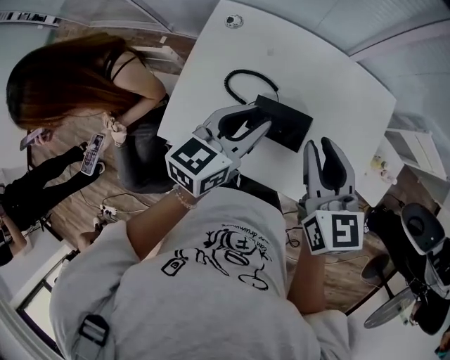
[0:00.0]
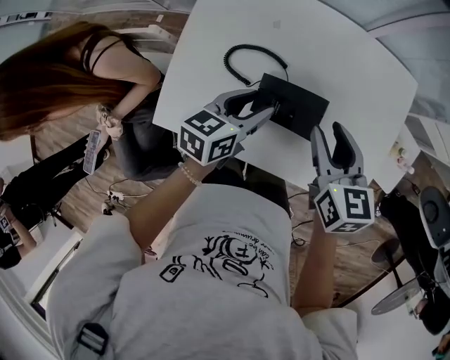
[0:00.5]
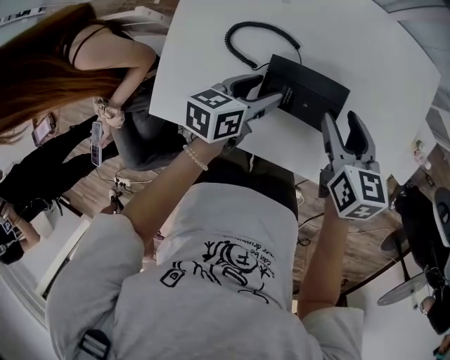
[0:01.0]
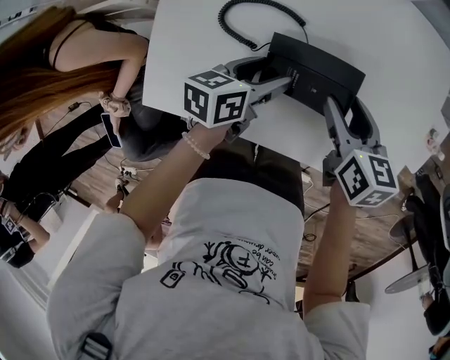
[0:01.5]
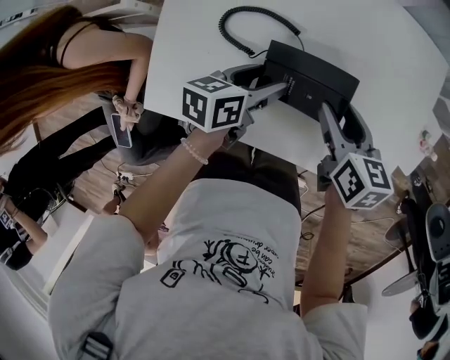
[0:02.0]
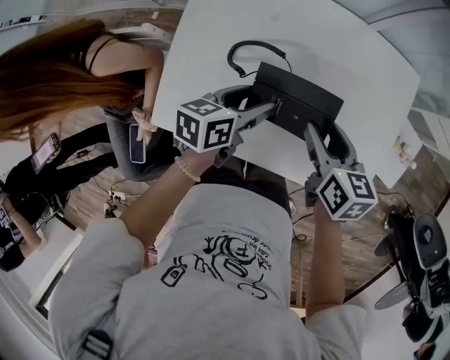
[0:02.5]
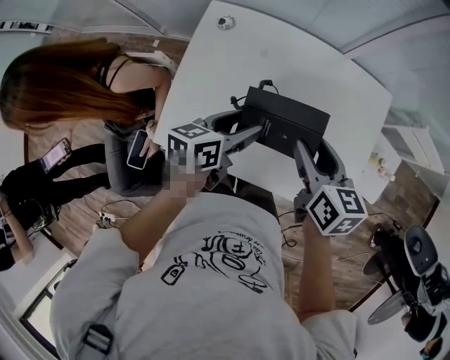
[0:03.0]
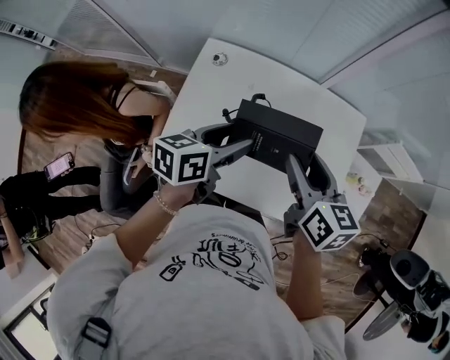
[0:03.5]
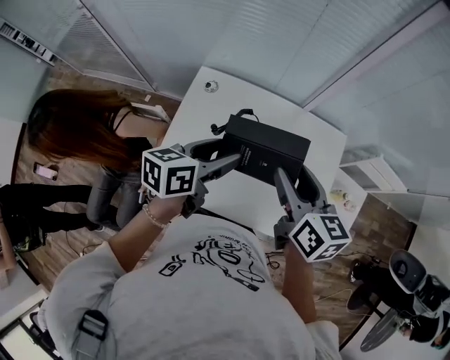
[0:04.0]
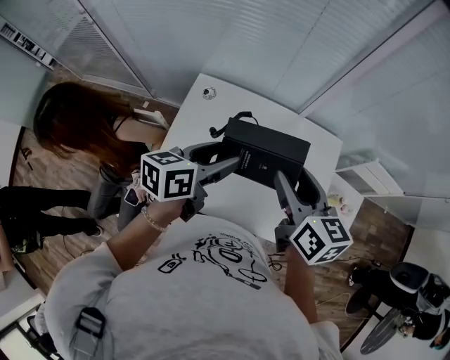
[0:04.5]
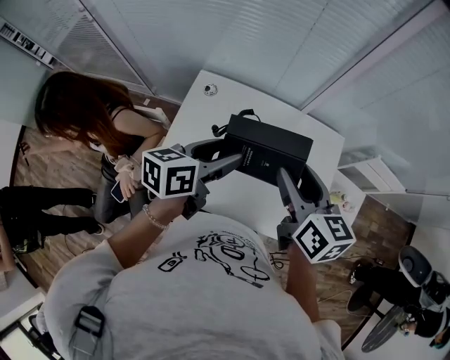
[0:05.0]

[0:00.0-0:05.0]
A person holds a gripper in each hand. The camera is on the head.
0:00.0 to 0:02.5: The grippers both shift downward by roughly 15 cm. The right gripper swivels about 20 degrees, and opens up, while the left gripper turns by approximately 30 degrees, and opens.
0:02.5 to 0:05.0: Both grippers travel together upward, some 25 cm.

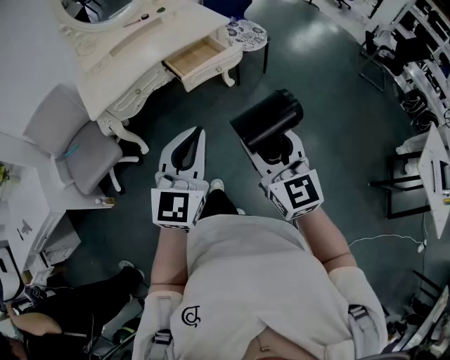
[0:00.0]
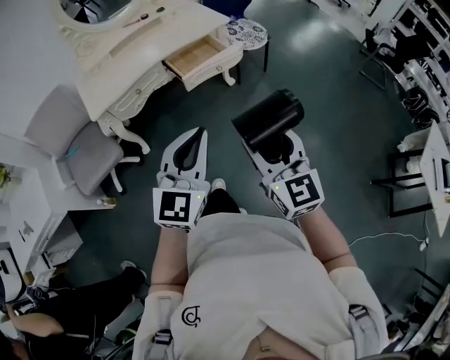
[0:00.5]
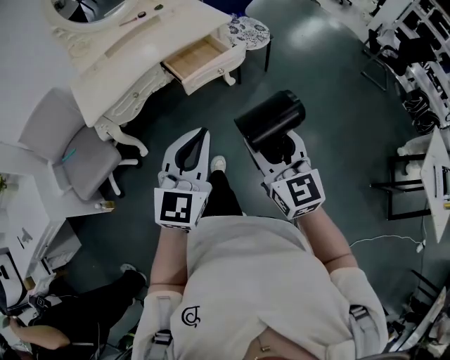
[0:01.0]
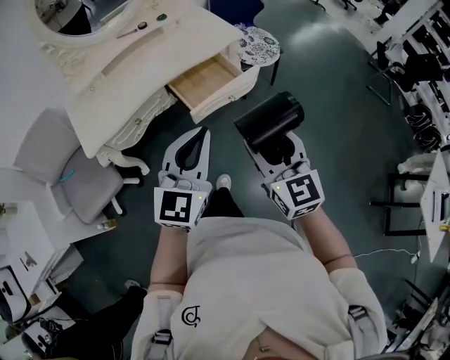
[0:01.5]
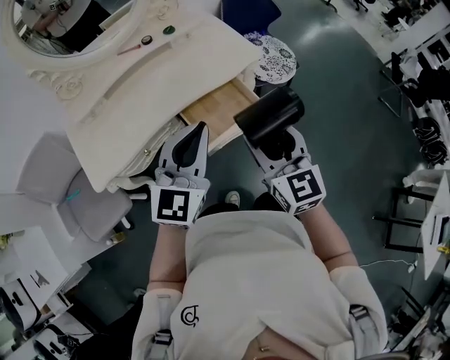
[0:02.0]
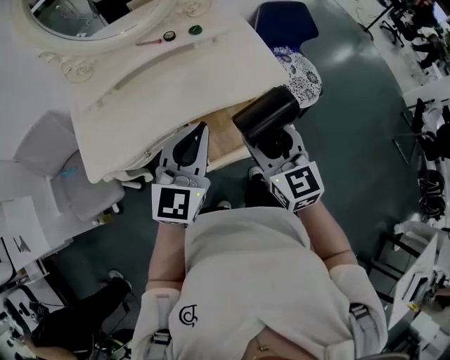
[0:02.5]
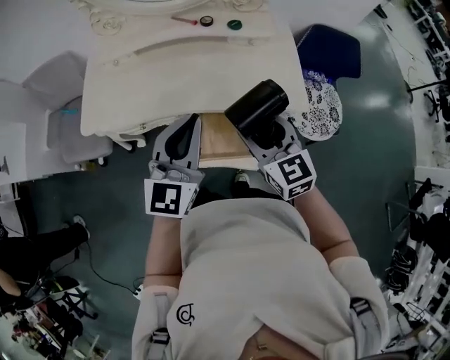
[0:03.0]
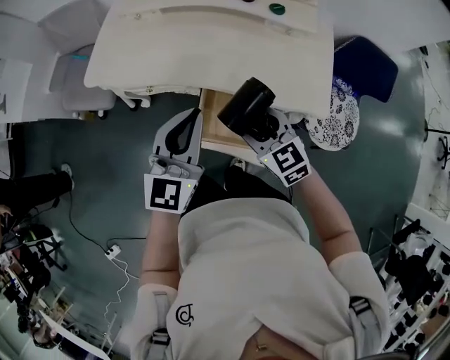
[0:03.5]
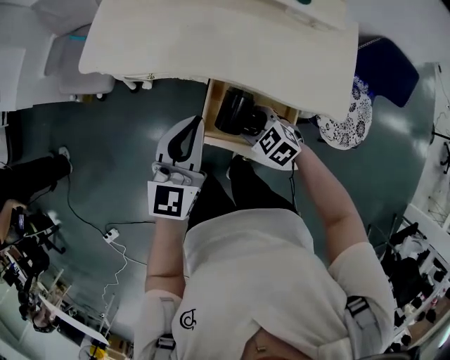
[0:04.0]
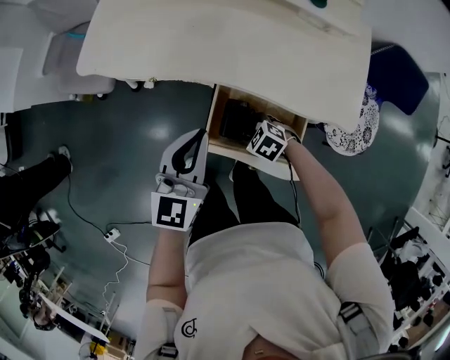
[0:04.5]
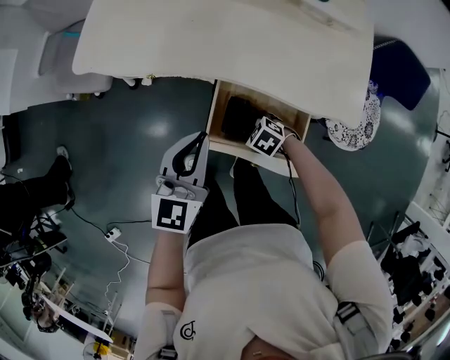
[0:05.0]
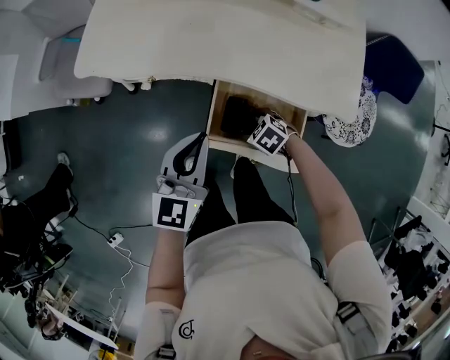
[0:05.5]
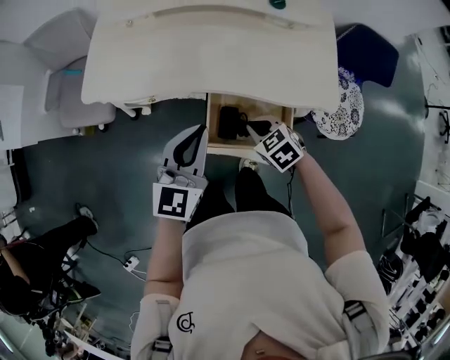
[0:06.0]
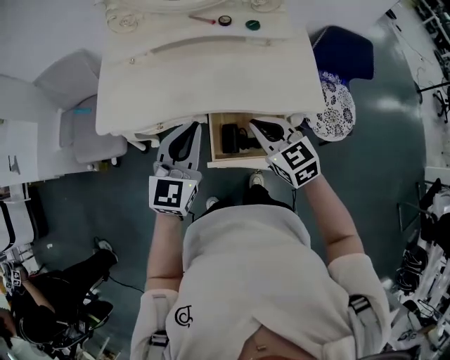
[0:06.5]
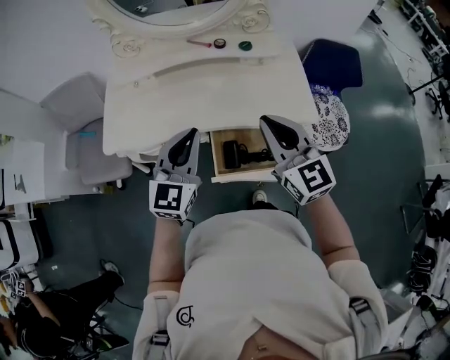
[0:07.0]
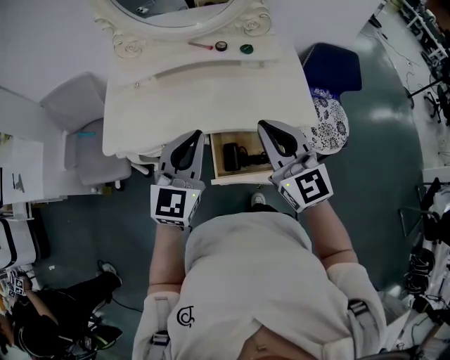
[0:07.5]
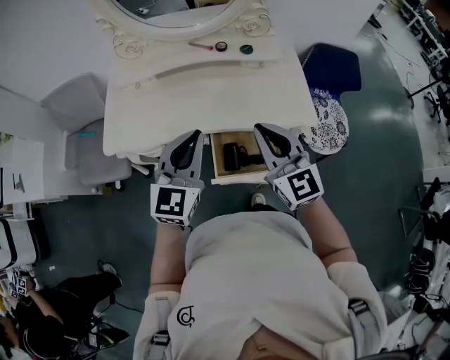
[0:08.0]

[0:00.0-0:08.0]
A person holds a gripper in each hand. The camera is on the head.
0:00.0 to 0:02.0: The two grippers travel together, forward, roughly 40 cm.
0:02.0 to 0:04.0: The right gripper moves downward, about 30 cm, and tips its fingers downward by roughly 40 degrees. The left gripper goes some 15 cm downward, and changes its angle by some 50 degrees.
0:04.0 to 0:06.0: The right gripper moves some 15 cm downward and comes back, turns by some 20 degrees, and closes its fingers.
0:06.0 to 0:08.0: The left gripper heads upward, covering about 10 cm. Meanwhile the right gripper moves upward, approximately 30 cm, and tilts its fingers approximately 50 degrees upward.

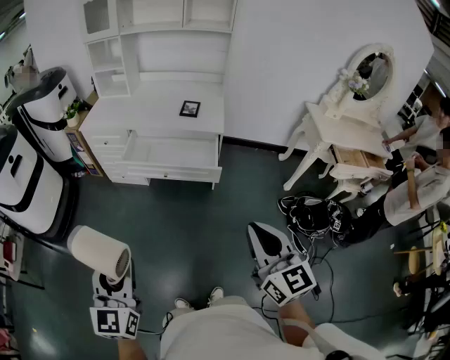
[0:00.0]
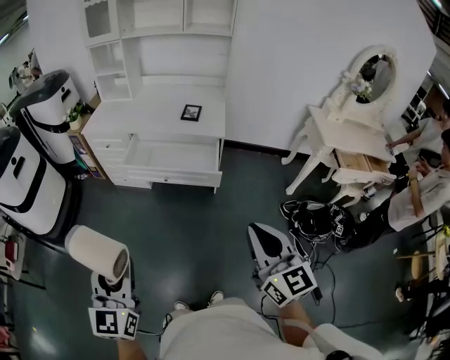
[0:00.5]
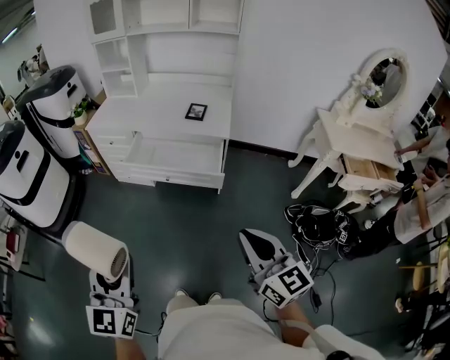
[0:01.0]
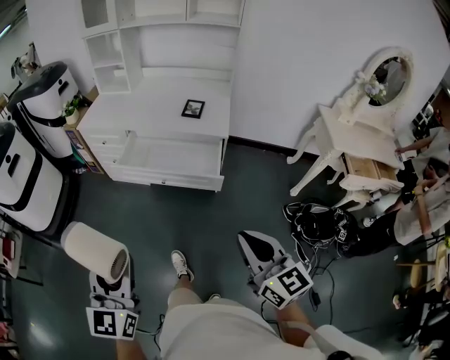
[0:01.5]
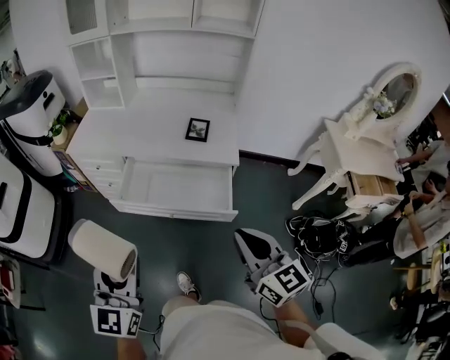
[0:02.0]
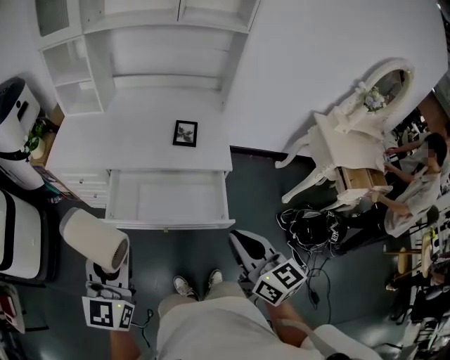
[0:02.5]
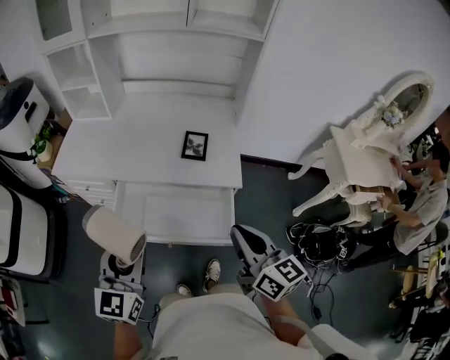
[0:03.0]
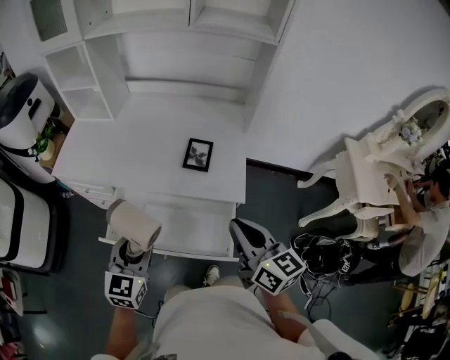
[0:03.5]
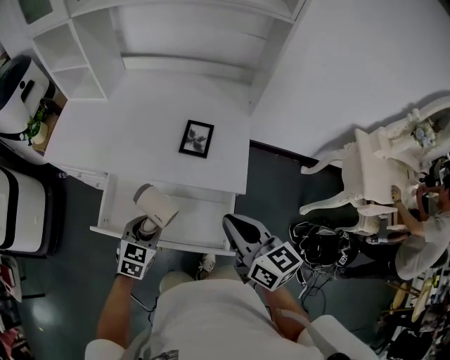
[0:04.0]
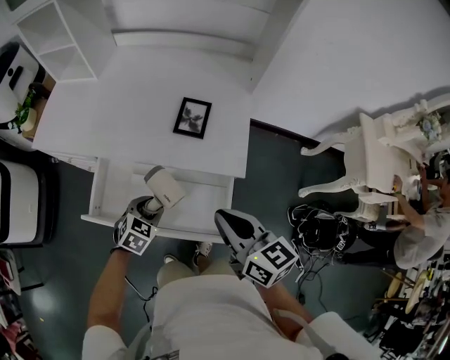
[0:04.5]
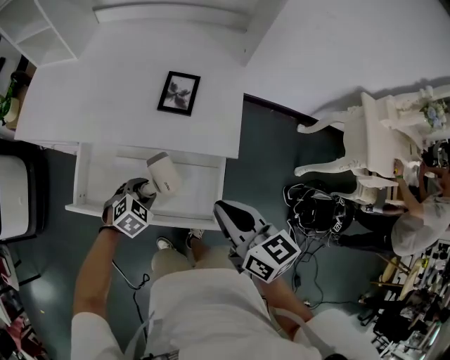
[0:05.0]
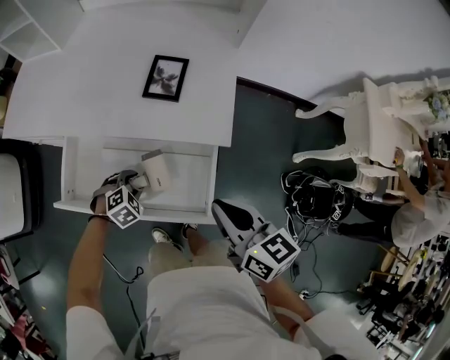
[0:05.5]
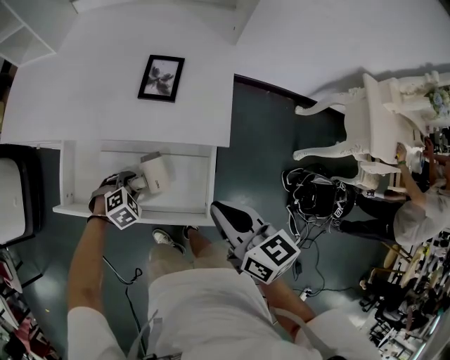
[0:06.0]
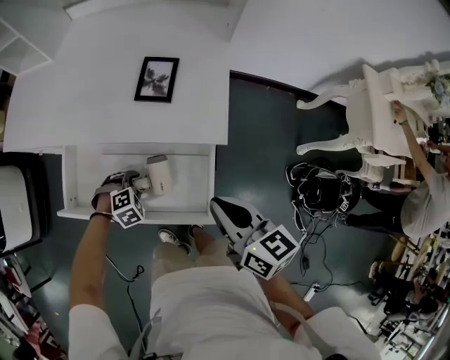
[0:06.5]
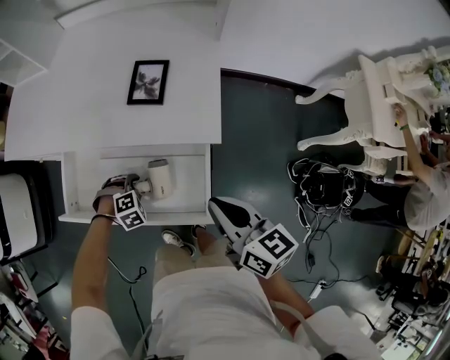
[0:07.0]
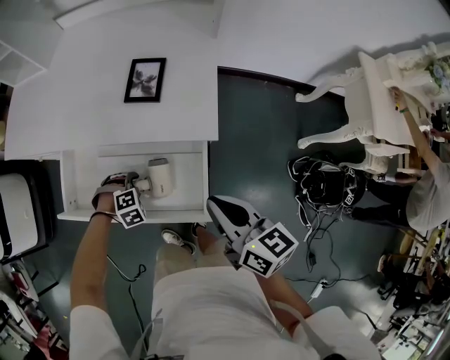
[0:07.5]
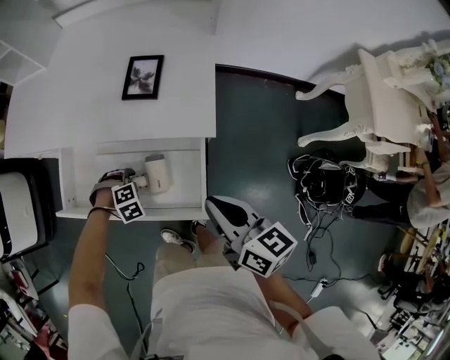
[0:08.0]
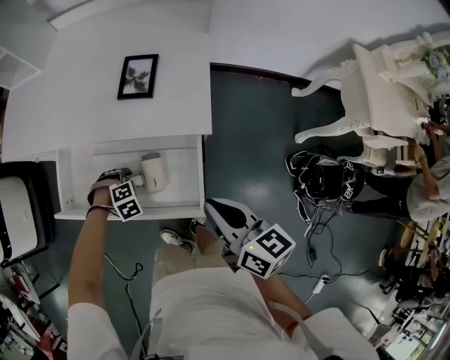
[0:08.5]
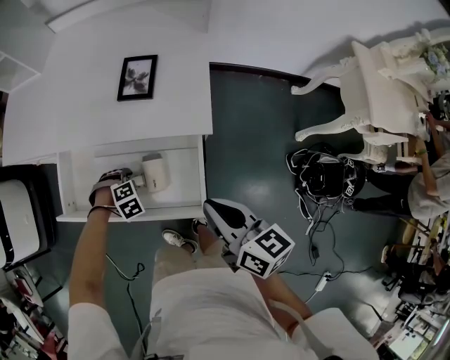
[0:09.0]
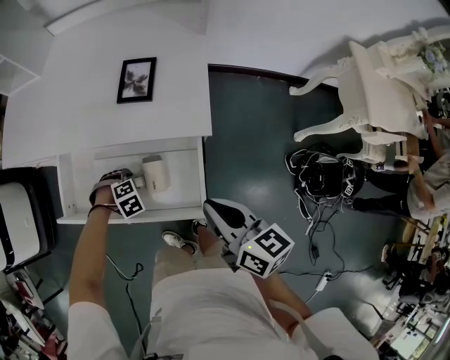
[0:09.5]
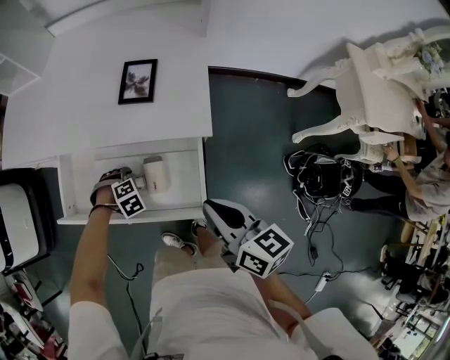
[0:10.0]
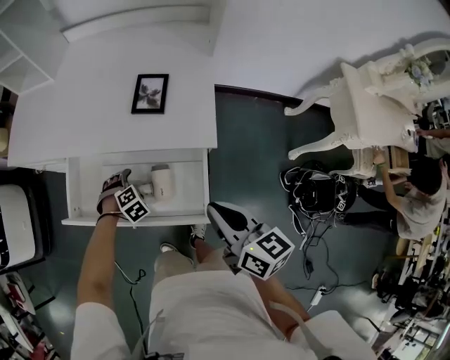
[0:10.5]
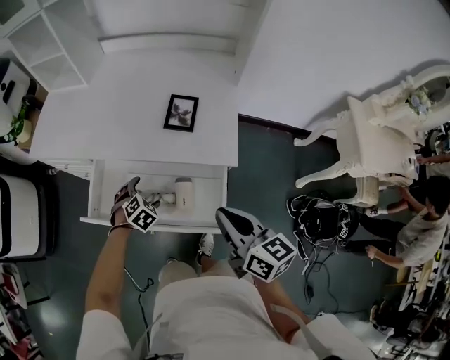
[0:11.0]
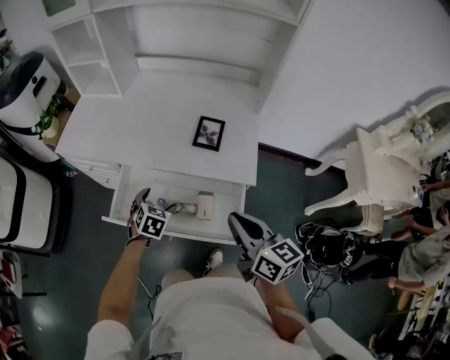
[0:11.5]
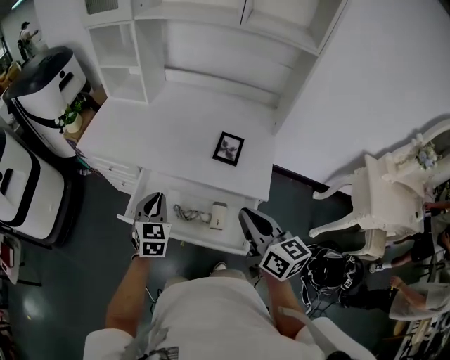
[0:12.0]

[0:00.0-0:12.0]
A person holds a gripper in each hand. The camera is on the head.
0:00.0 to 0:02.0: Both grippers move forward, some 30 cm.
0:02.0 to 0:04.0: The left gripper goes approximately 40 cm forward and downward, and tips its fingers downward by approximately 40 degrees, while the right gripper heads forward, covering some 30 cm.
0:04.0 to 0:06.0: The right gripper is displaced downward by approximately 10 cm. Meanwhile the left gripper is displaced downward by about 20 cm, and angles its fingers downward, by roughly 30 degrees.
0:06.0 to 0:08.0: The left gripper turns by about 20 degrees.
0:08.0 to 0:10.0: The grippers move only a little.
0:10.0 to 0:12.0: The right gripper is displaced upward by about 15 cm; the left gripper is displaced upward by some 30 cm, points its fingers about 60 degrees further upward, and closes.

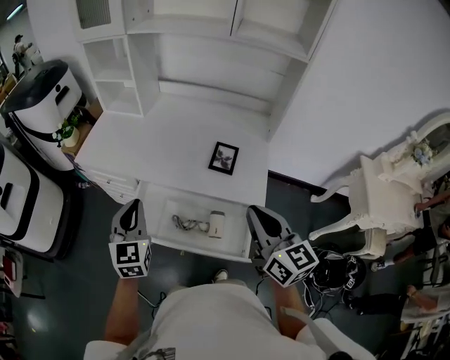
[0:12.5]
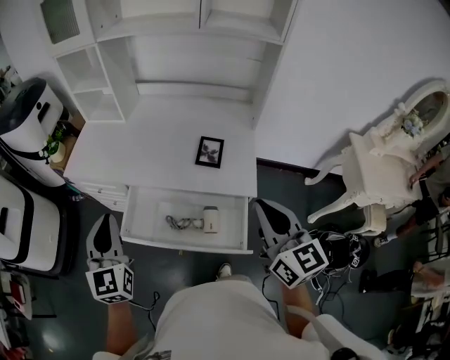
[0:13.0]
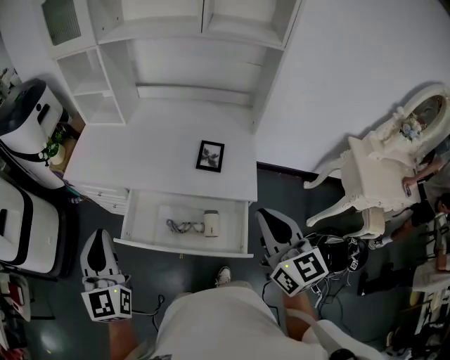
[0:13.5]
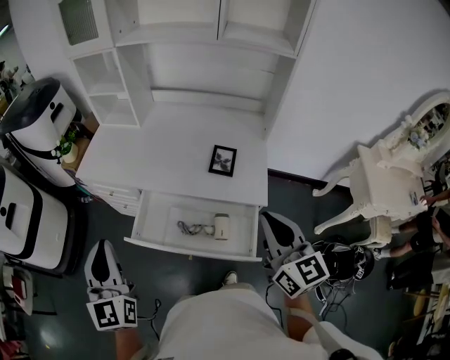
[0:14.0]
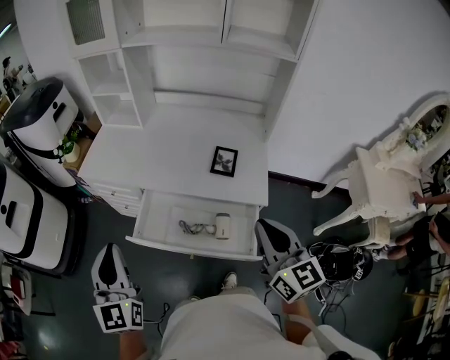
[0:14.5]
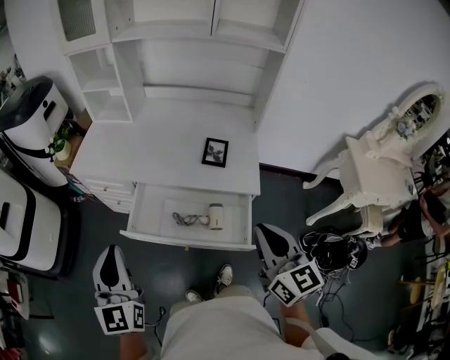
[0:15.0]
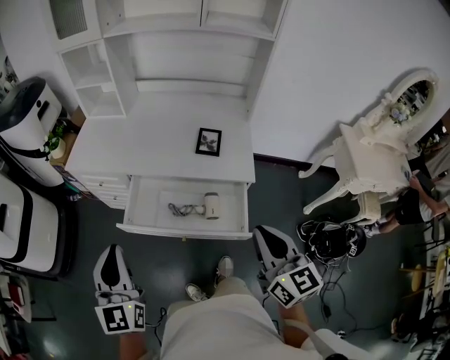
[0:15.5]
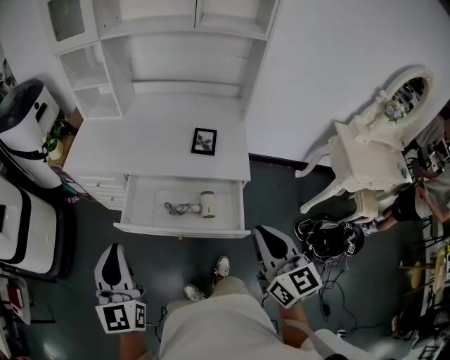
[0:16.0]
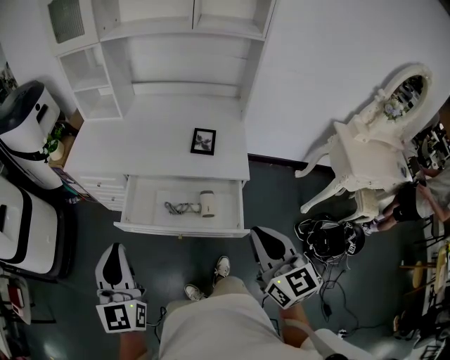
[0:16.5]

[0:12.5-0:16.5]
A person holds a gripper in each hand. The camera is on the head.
0:12.5 to 0:14.5: The right gripper heads backward, covering about 5 cm; the left gripper goes about 15 cm backward, upward and to the left.
0:14.5 to 0:16.5: The left gripper heads backward, covering roughly 5 cm. Meanwhile the right gripper goes approximately 10 cm backward.
